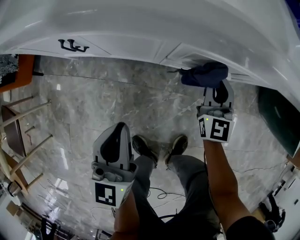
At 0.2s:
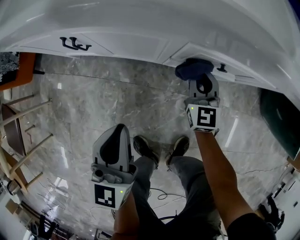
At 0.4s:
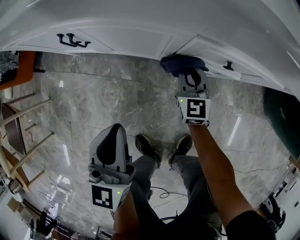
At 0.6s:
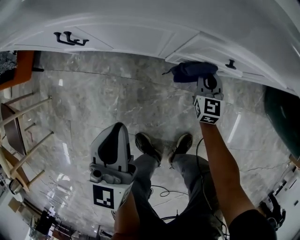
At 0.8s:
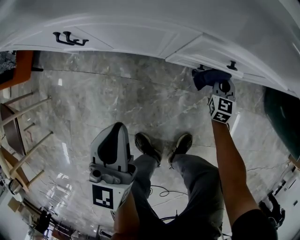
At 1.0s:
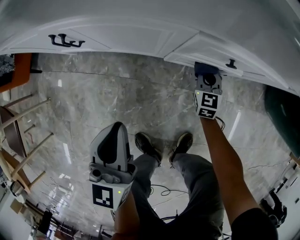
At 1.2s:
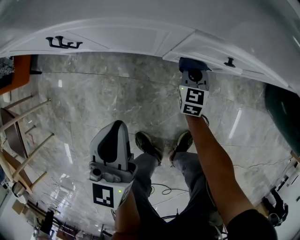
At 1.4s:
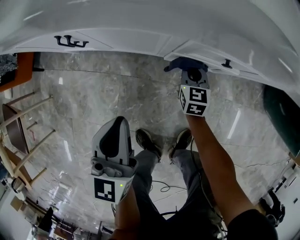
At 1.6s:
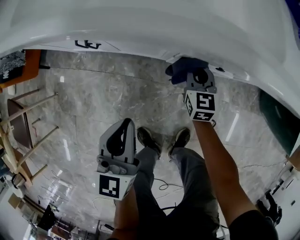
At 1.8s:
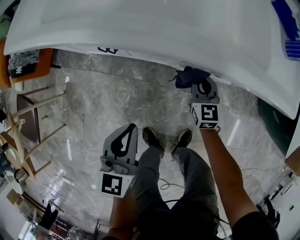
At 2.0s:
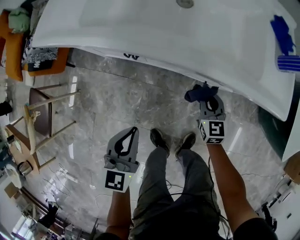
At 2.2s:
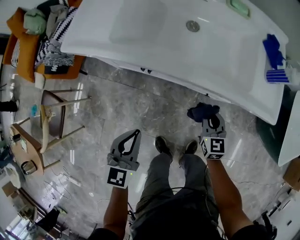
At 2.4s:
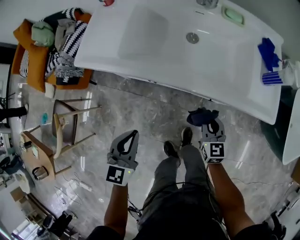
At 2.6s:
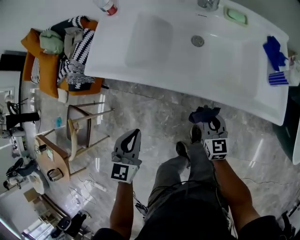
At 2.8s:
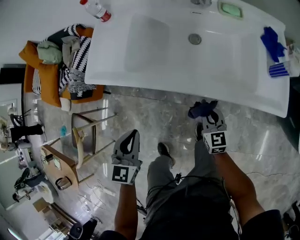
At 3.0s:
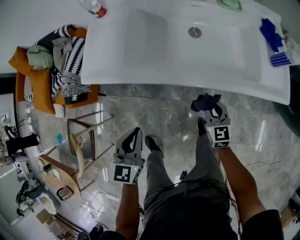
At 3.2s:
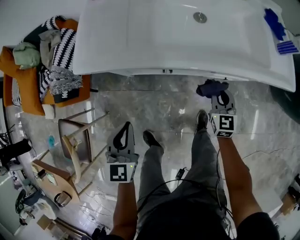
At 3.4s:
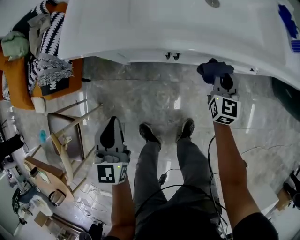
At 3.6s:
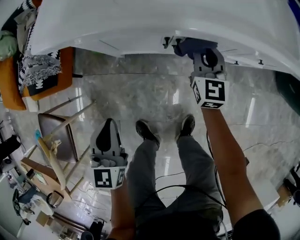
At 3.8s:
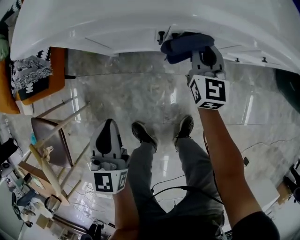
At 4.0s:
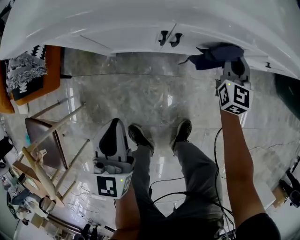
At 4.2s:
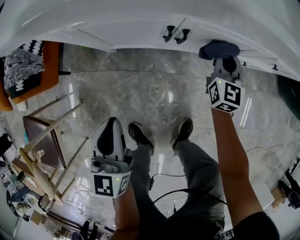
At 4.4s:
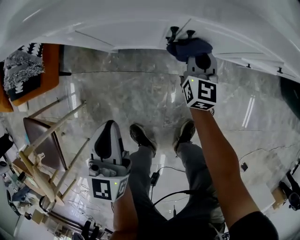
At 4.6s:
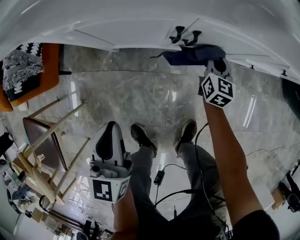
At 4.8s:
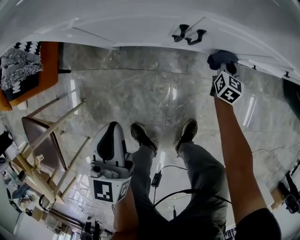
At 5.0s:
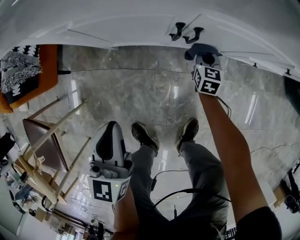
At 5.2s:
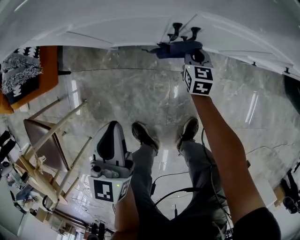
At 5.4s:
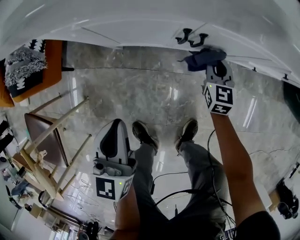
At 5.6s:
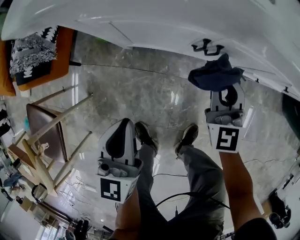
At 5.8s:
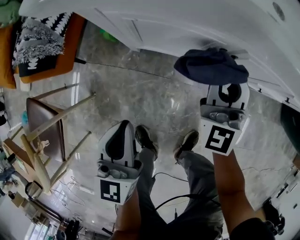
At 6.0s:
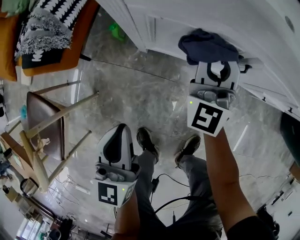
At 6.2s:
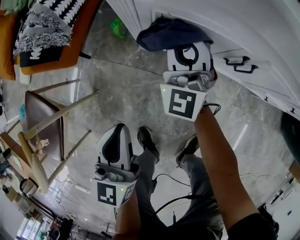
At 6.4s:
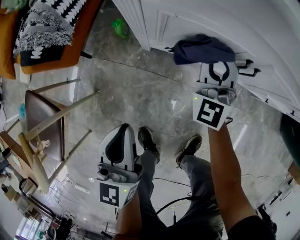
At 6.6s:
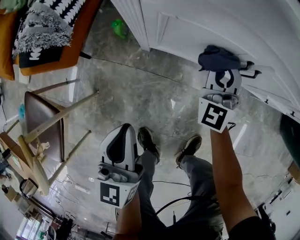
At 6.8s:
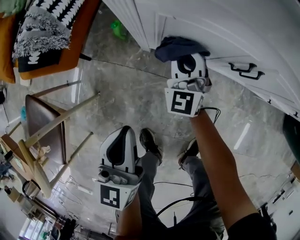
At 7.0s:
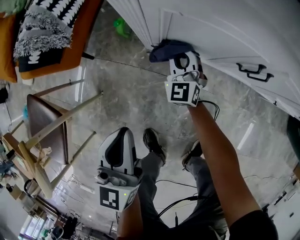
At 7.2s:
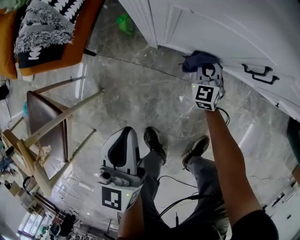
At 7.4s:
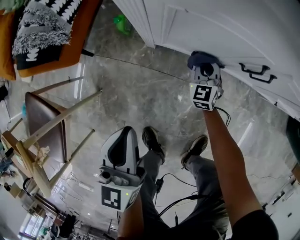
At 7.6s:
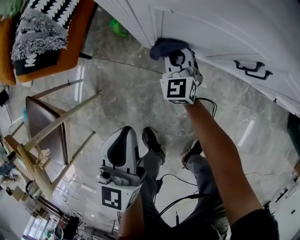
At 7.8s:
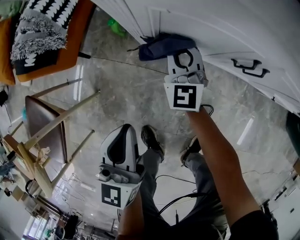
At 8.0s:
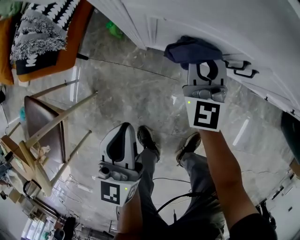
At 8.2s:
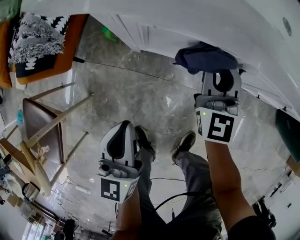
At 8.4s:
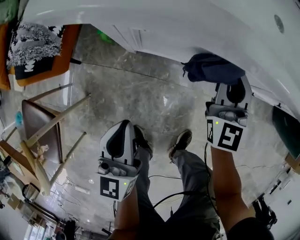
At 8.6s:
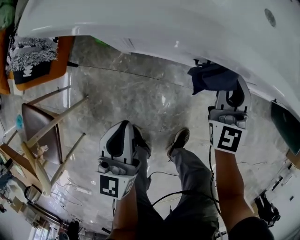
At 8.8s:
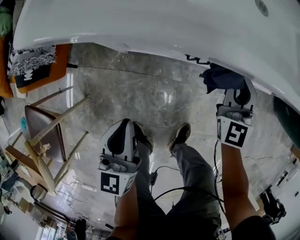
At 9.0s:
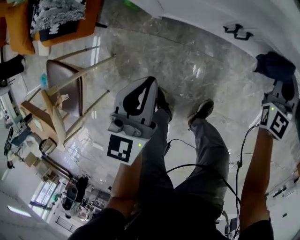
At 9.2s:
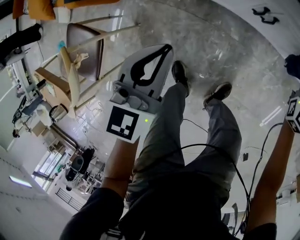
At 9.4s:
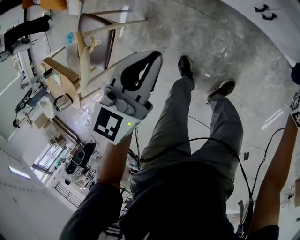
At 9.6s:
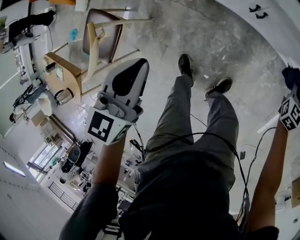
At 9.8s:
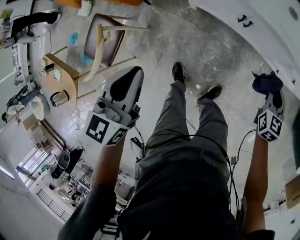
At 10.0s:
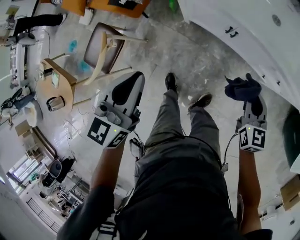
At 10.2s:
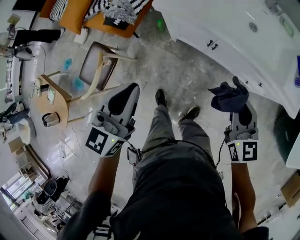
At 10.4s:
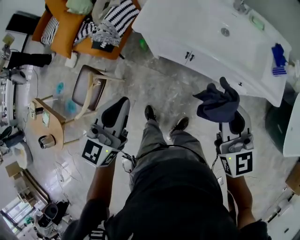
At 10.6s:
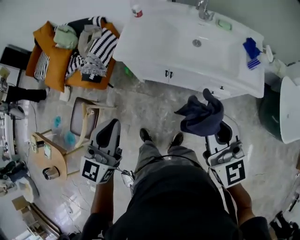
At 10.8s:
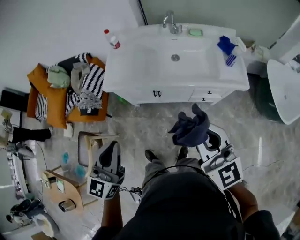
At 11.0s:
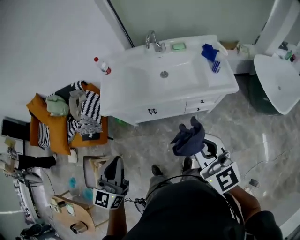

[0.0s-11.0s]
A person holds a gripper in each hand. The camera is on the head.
0.0s to 1.6s: The right gripper shifts approximately 5 cm to the left, and goes downward and returns, about 20 cm each way.
1.6s to 3.2s: The right gripper moves upward and to the left, approximately 25 cm; the left gripper moves to the left and upward, approximately 35 cm.
3.2s to 4.8s: The left gripper heads downward, covering roughly 20 cm, while the right gripper heads downward, covering roughly 35 cm, and changes its angle by some 20 degrees.
4.8s to 6.2s: The left gripper shifts by some 10 cm. Meanwhile the right gripper changes place by approximately 50 cm, and angles its fingers upward, by about 40 degrees.
6.2s to 7.8s: The right gripper is displaced downward by some 10 cm, and rotates some 20 degrees.
7.8s to 9.4s: The left gripper goes some 20 cm upward, and swivels approximately 20 degrees; the right gripper goes approximately 40 cm to the right, and changes its angle by about 30 degrees.
9.4s to 11.0s: The right gripper is displaced upward and backward by roughly 60 cm, and turns by approximately 50 degrees, while the left gripper heads upward, covering roughly 35 cm, and changes its angle by some 30 degrees.

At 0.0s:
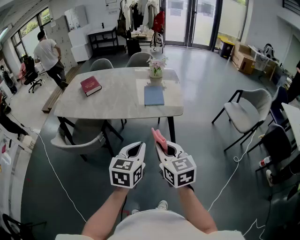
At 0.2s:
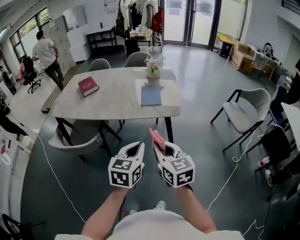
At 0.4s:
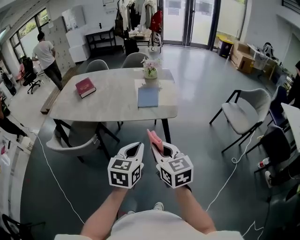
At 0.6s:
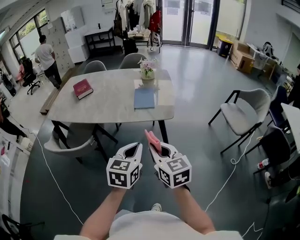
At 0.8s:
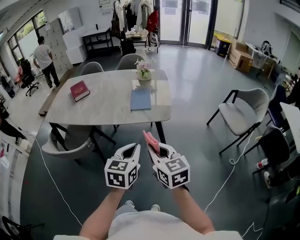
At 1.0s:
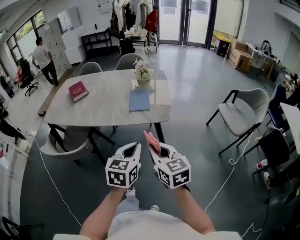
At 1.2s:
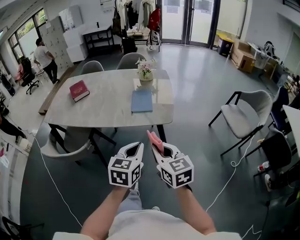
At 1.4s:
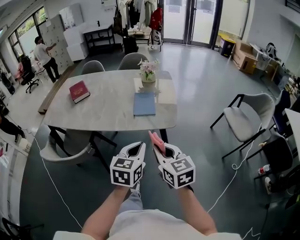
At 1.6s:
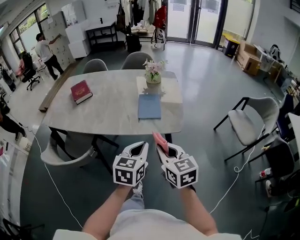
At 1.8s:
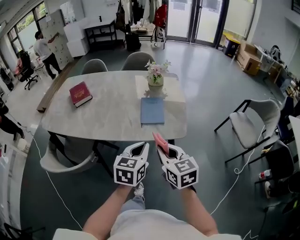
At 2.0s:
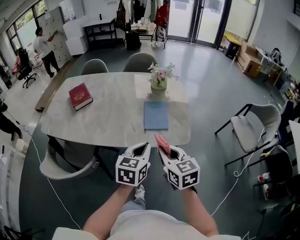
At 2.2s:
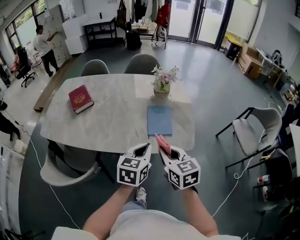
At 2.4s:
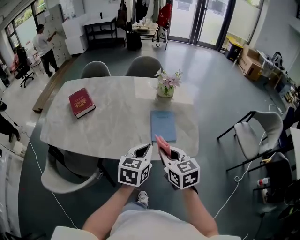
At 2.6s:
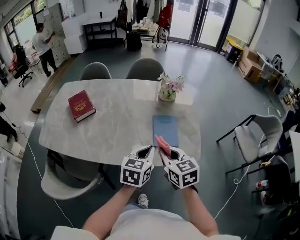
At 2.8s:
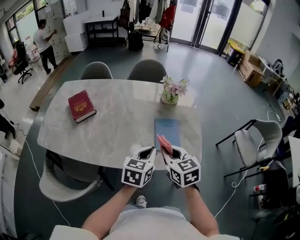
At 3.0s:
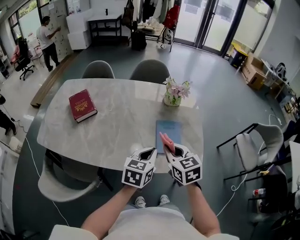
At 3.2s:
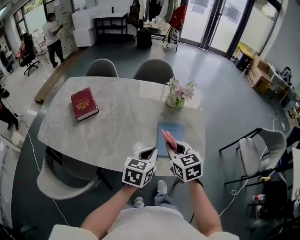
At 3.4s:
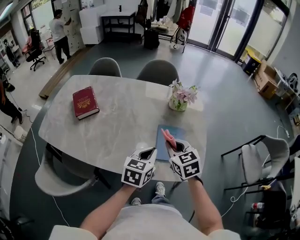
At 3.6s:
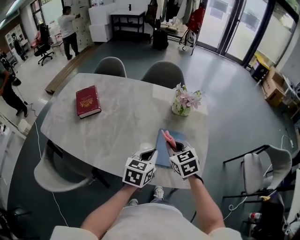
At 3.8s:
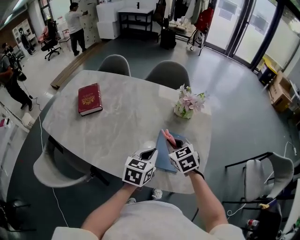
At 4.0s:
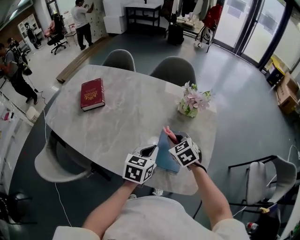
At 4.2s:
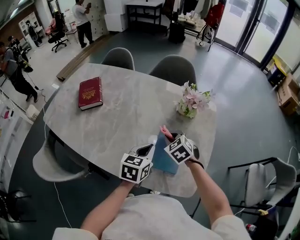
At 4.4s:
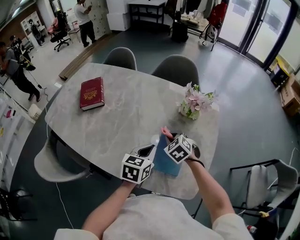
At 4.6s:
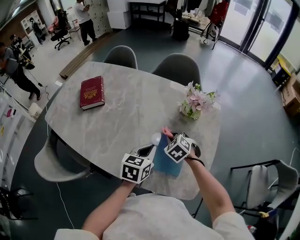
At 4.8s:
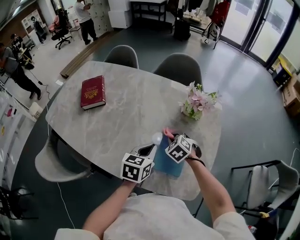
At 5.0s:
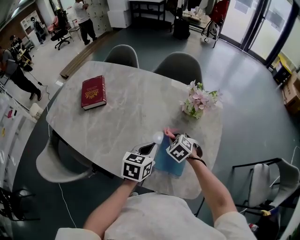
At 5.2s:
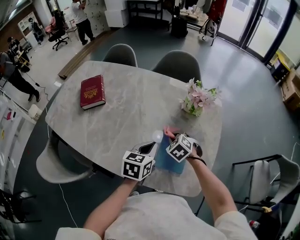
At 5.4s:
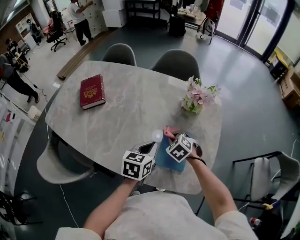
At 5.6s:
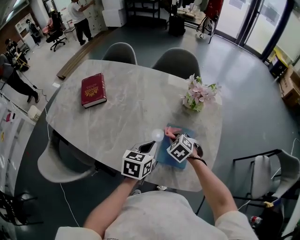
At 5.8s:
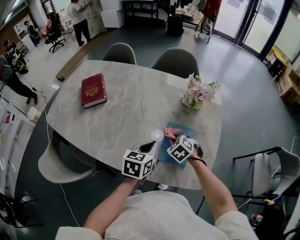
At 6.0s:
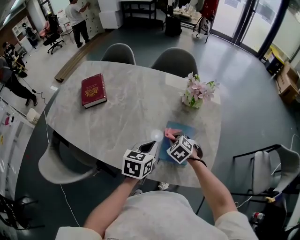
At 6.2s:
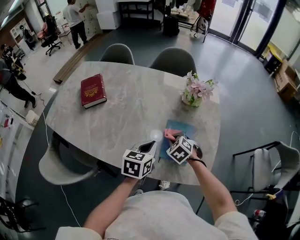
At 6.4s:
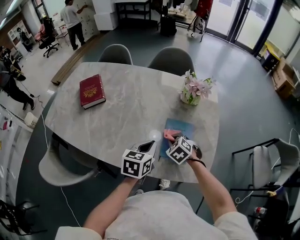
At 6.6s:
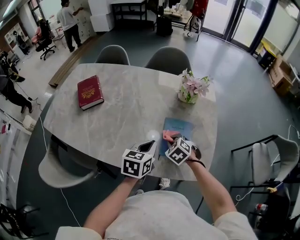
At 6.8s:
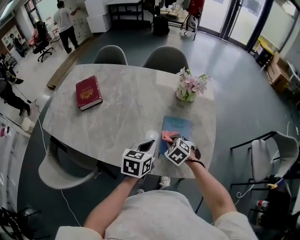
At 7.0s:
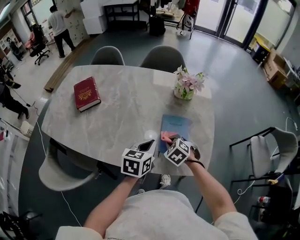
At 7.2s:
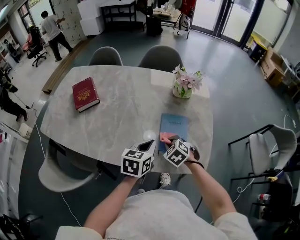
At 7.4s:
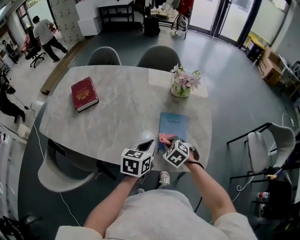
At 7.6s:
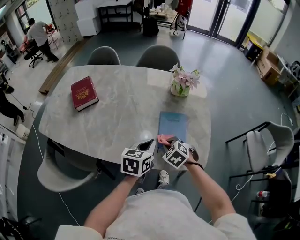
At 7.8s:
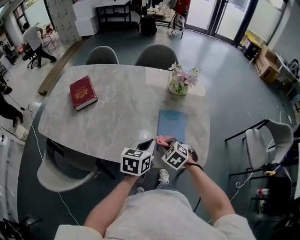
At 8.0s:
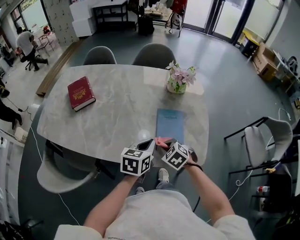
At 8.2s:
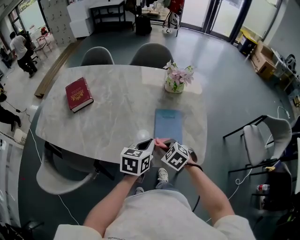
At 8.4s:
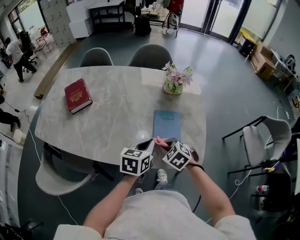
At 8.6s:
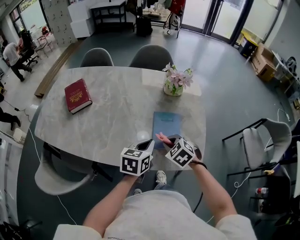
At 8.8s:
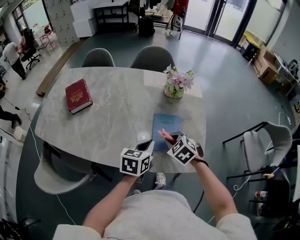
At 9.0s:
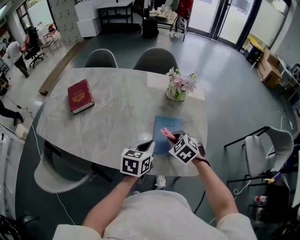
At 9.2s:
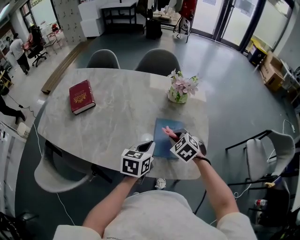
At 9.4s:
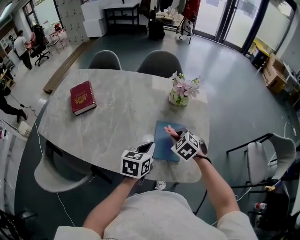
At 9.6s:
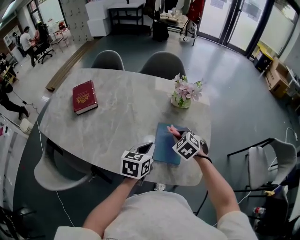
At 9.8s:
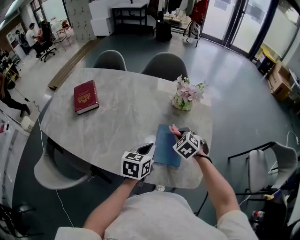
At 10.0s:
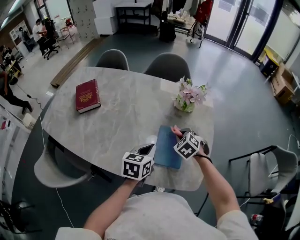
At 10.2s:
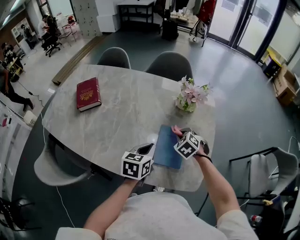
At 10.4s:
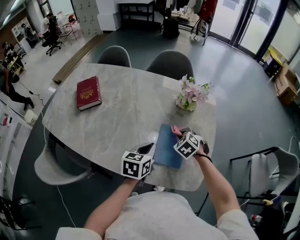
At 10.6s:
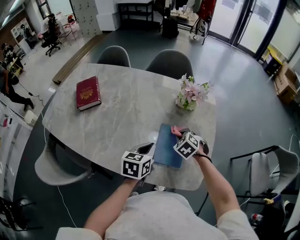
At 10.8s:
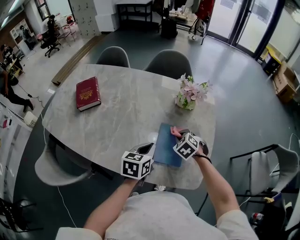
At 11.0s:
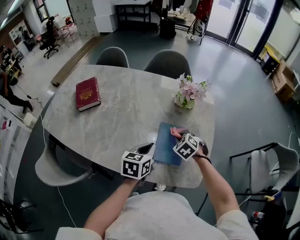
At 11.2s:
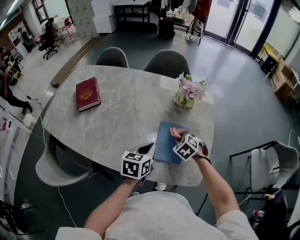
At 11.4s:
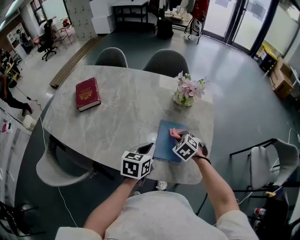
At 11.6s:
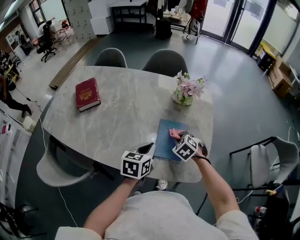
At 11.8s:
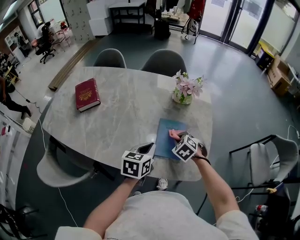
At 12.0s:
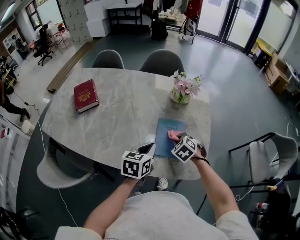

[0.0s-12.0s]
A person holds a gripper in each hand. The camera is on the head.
0.0s to 1.6s: The left gripper travels forward and to the right by roughly 20 cm, while the right gripper travels forward by about 15 cm.
1.6s to 3.0s: Both grippers move forward and to the left, roughly 25 cm.
3.0s to 4.4s: The left gripper is displaced forward and downward by some 15 cm, while the right gripper shifts roughly 25 cm forward and downward, and rotates about 40 degrees.
4.4s to 6.0s: The right gripper is displaced backward by about 5 cm.
6.0s to 7.6s: The right gripper heads backward, covering some 10 cm; the left gripper shifts some 5 cm backward.
7.6s to 9.0s: The right gripper moves upward, about 5 cm.
9.0s to 10.4s: The right gripper moves forward and downward, some 10 cm.
10.4s to 12.0s: The right gripper is displaced backward by some 10 cm.

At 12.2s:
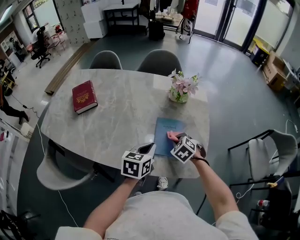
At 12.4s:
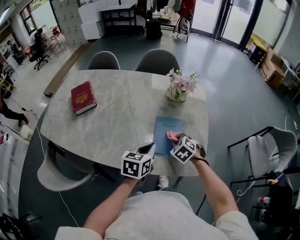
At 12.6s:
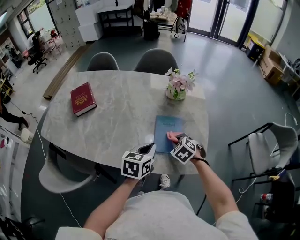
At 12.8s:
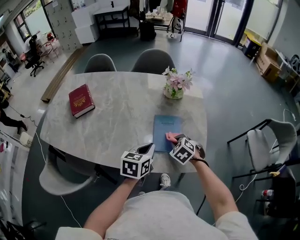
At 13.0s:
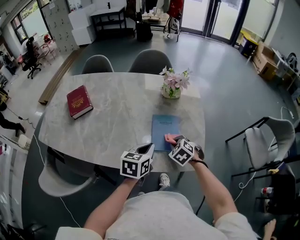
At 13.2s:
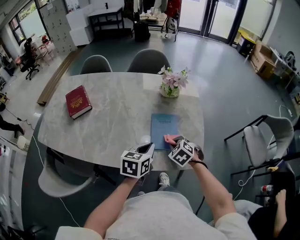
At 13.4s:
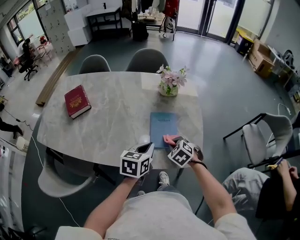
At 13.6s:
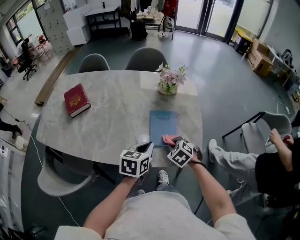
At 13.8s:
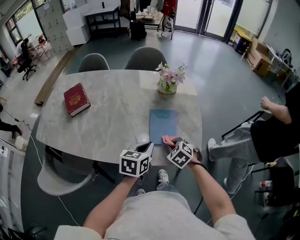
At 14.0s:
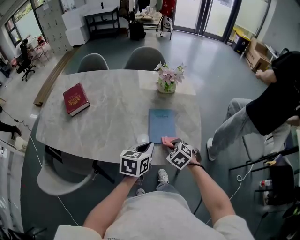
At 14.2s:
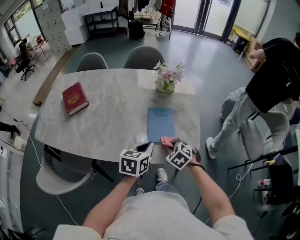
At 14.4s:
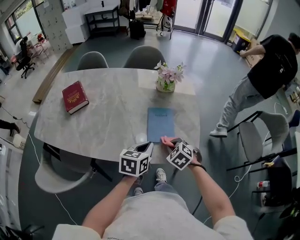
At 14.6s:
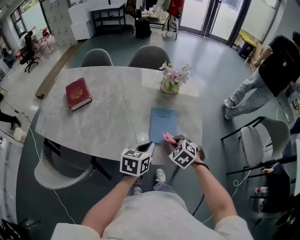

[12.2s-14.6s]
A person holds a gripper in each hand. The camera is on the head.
12.2s to 13.4s: The right gripper heads backward, covering roughly 5 cm.
13.4s to 14.6s: The grippers make only small movements.
